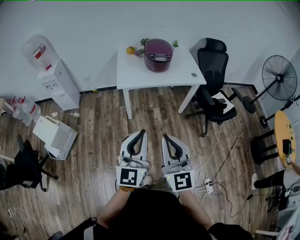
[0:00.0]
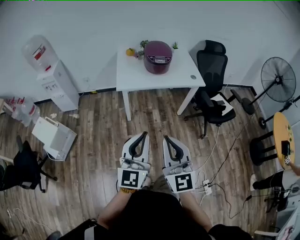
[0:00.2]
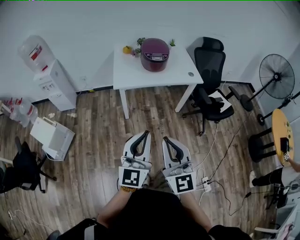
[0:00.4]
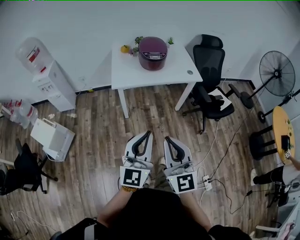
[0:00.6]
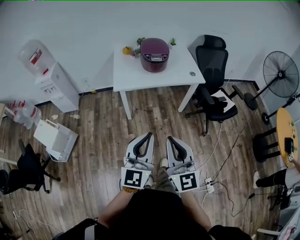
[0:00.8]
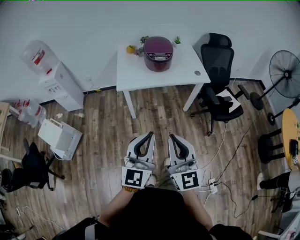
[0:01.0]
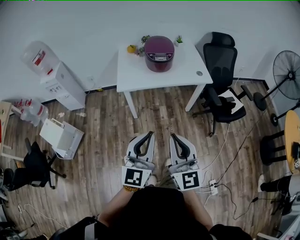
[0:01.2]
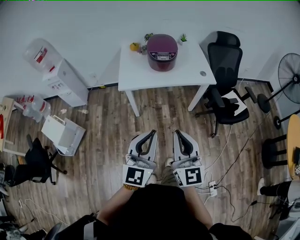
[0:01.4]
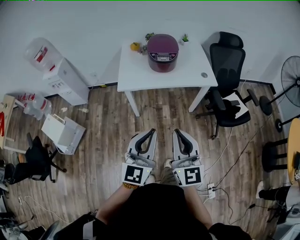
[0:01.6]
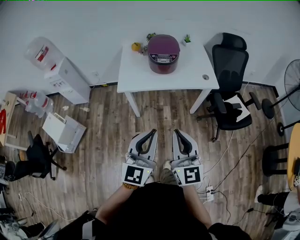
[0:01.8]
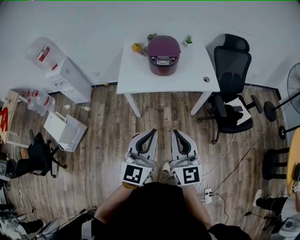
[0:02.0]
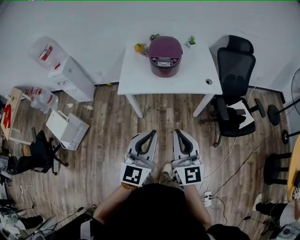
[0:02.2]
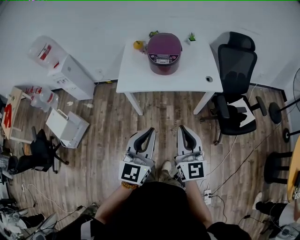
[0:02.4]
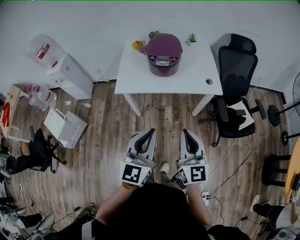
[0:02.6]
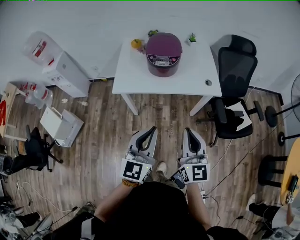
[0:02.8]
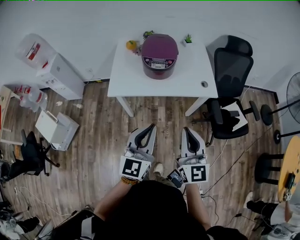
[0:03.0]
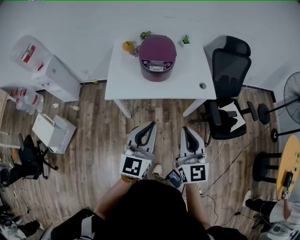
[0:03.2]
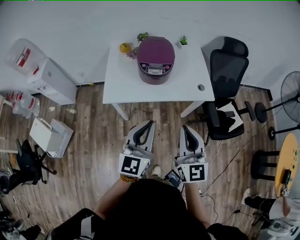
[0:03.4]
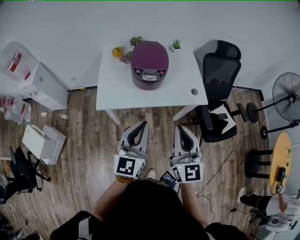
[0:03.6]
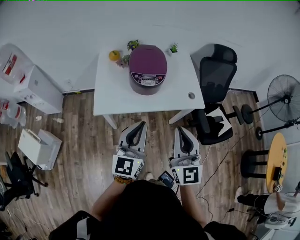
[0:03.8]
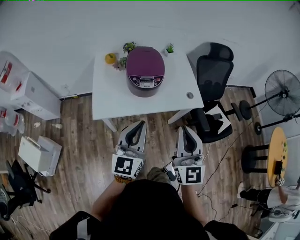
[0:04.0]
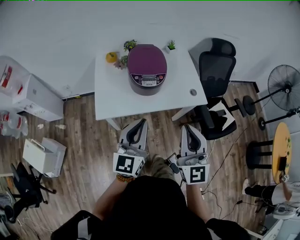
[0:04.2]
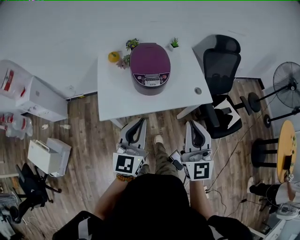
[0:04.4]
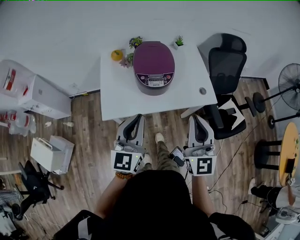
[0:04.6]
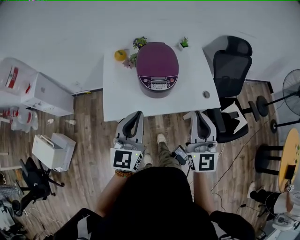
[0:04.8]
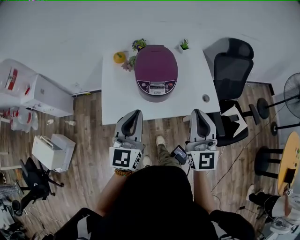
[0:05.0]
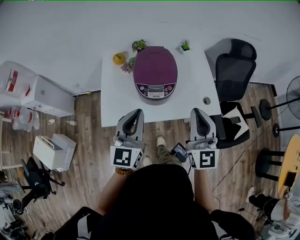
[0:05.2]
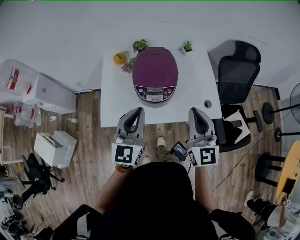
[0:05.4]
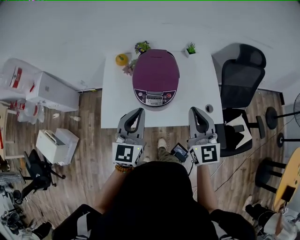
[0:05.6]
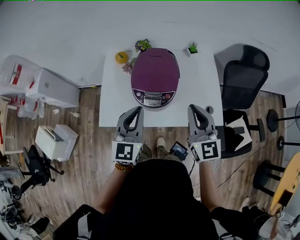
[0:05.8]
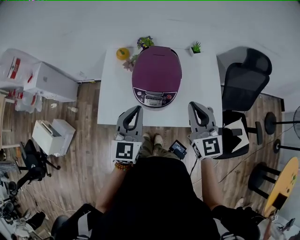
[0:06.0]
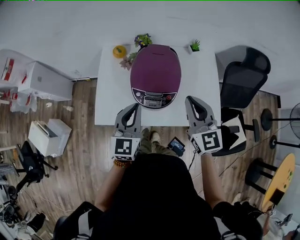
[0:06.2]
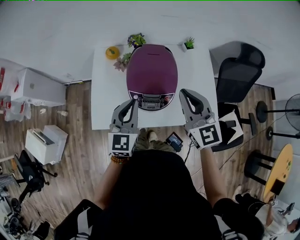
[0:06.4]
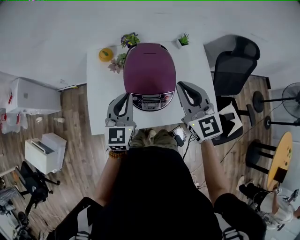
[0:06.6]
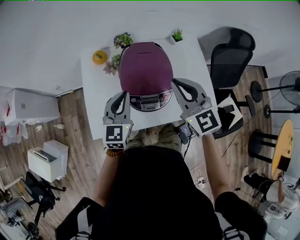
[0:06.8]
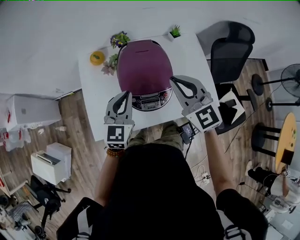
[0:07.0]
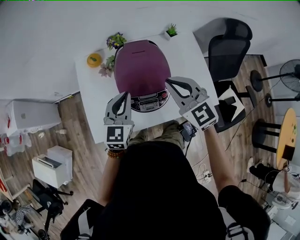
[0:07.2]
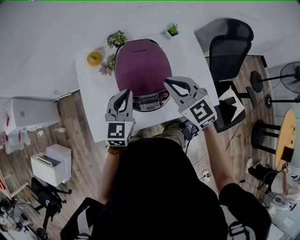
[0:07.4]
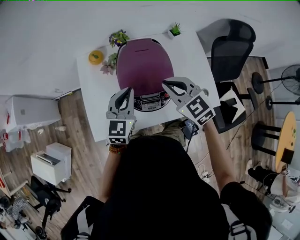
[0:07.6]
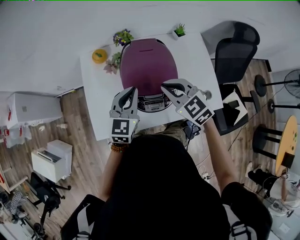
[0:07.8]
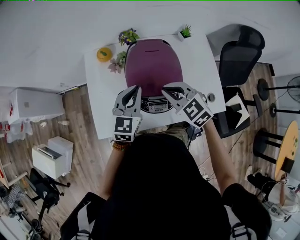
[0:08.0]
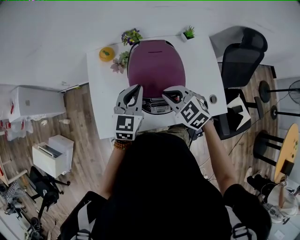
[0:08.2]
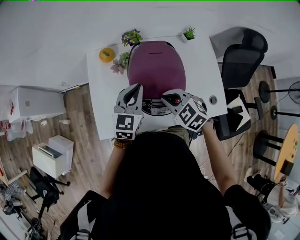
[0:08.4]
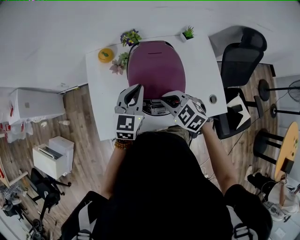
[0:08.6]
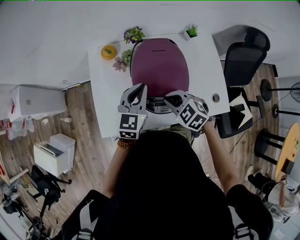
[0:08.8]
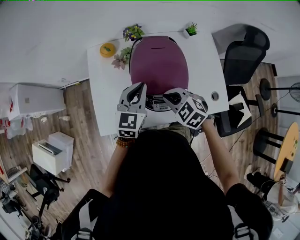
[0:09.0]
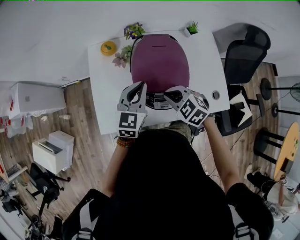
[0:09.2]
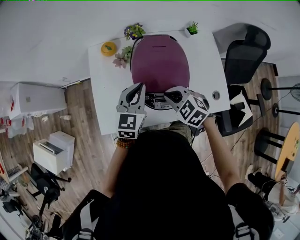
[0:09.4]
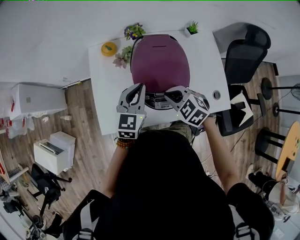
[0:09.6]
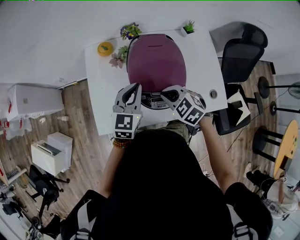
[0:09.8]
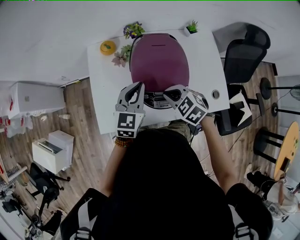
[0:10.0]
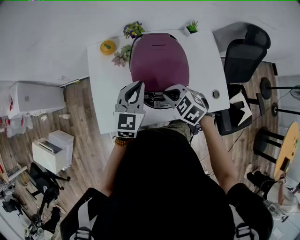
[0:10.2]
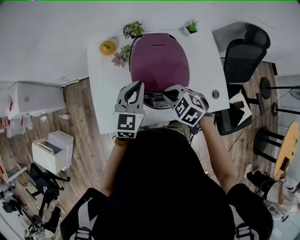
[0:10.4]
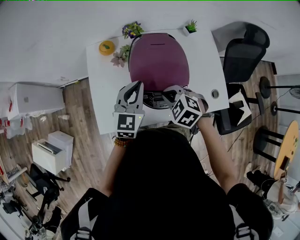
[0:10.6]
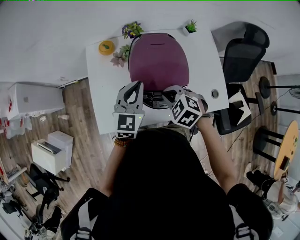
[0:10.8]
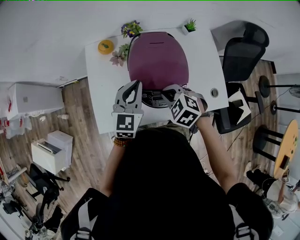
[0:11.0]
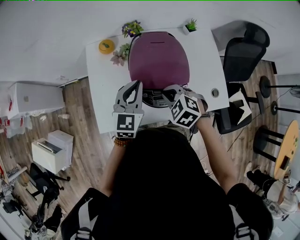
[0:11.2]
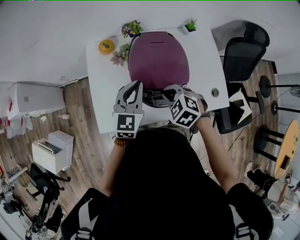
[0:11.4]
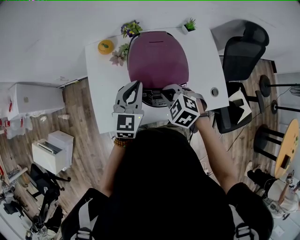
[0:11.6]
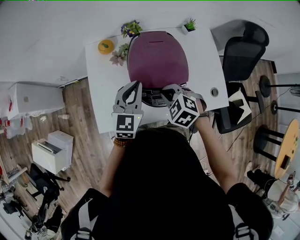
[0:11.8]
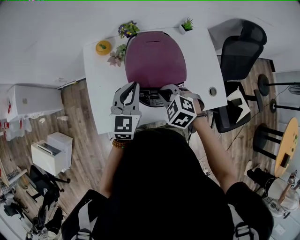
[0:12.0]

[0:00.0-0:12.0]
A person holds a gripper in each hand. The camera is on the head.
0:00.0 to 0:01.6: Both grippers travel together forward and to the right, about 20 cm.
0:01.6 to 0:03.0: The left gripper goes about 15 cm forward. The right gripper is displaced forward and to the right by some 20 cm.
0:03.0 to 0:04.4: The two grippers go roughly 15 cm forward and to the left.
0:04.4 to 0:06.0: Both grippers move forward, approximately 25 cm. The right gripper turns by approximately 30 degrees, while the left gripper rotates roughly 20 degrees.
0:06.0 to 0:07.6: The right gripper heads forward, to the left and downward, covering some 15 cm, and changes its angle by roughly 30 degrees; the left gripper heads forward and downward, covering roughly 15 cm.
0:07.6 to 0:09.0: The right gripper travels downward and to the left by some 10 cm, and changes its angle by roughly 30 degrees.
0:09.0 to 0:12.0: There are only small adjustments of the grippers.

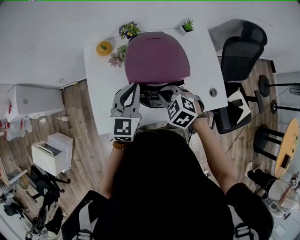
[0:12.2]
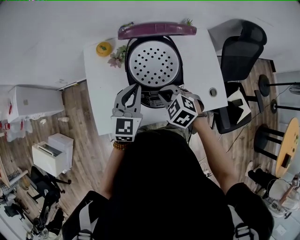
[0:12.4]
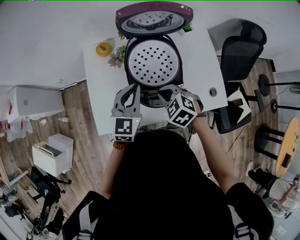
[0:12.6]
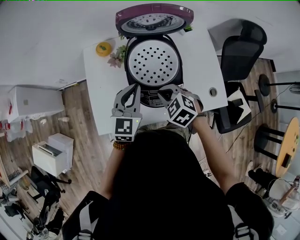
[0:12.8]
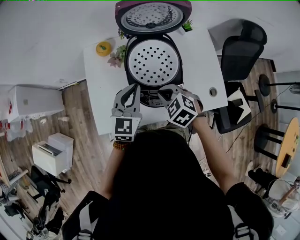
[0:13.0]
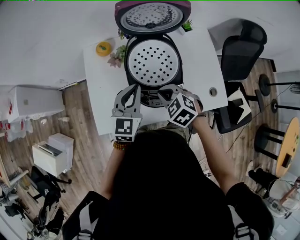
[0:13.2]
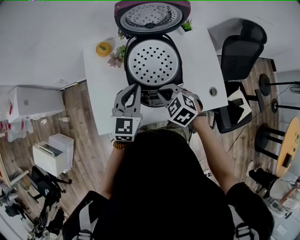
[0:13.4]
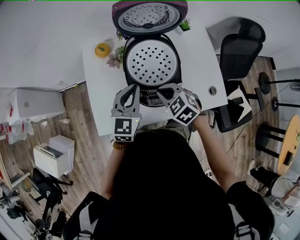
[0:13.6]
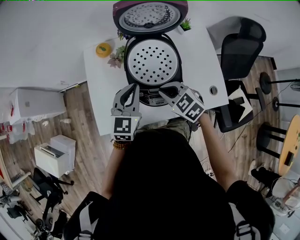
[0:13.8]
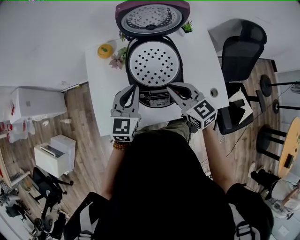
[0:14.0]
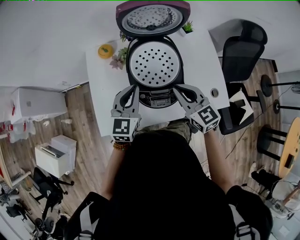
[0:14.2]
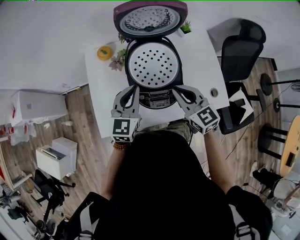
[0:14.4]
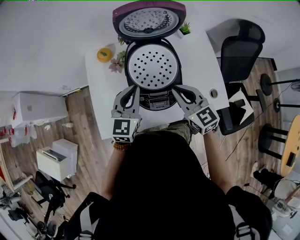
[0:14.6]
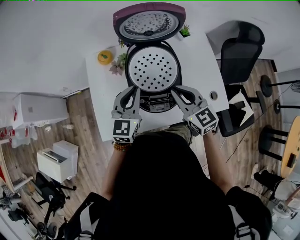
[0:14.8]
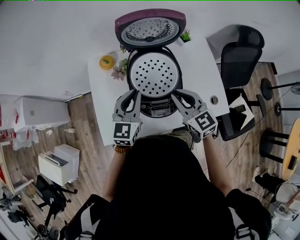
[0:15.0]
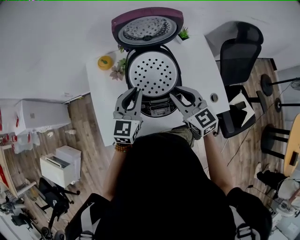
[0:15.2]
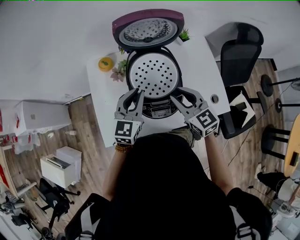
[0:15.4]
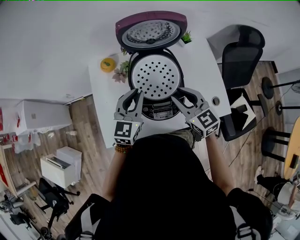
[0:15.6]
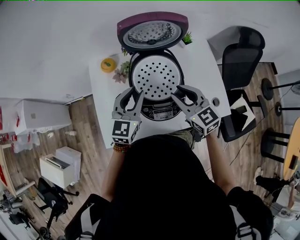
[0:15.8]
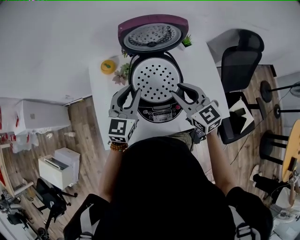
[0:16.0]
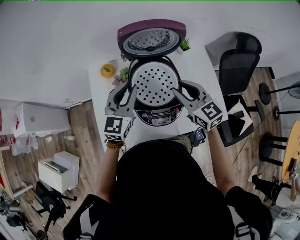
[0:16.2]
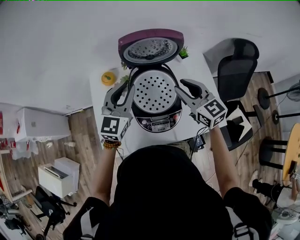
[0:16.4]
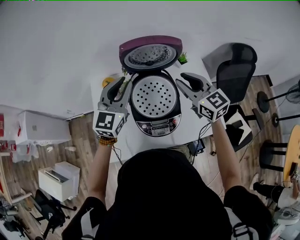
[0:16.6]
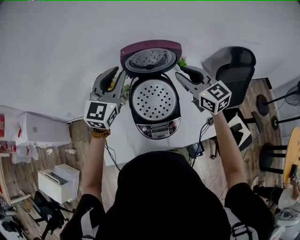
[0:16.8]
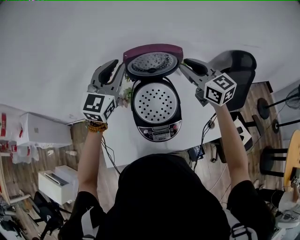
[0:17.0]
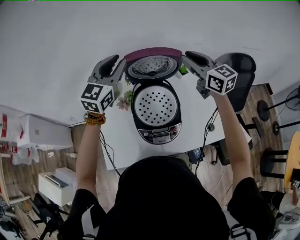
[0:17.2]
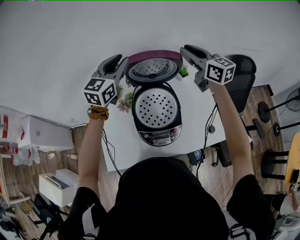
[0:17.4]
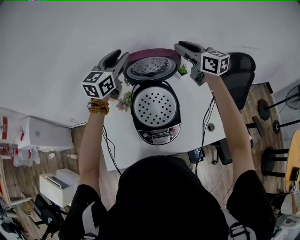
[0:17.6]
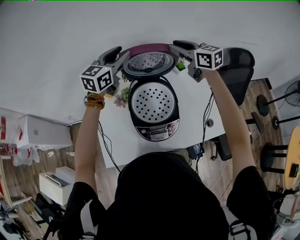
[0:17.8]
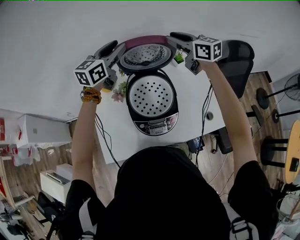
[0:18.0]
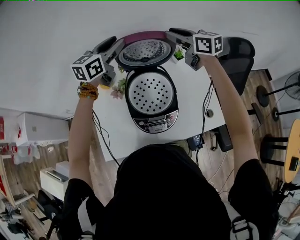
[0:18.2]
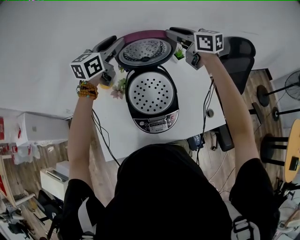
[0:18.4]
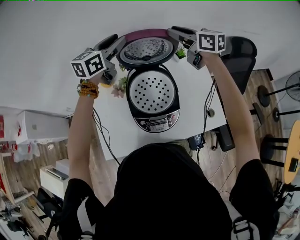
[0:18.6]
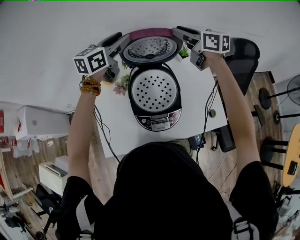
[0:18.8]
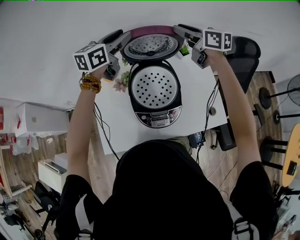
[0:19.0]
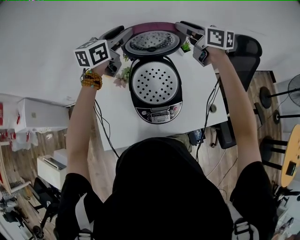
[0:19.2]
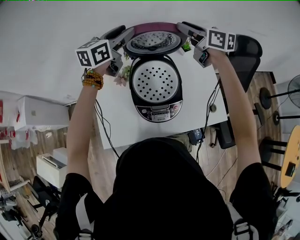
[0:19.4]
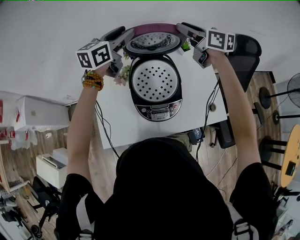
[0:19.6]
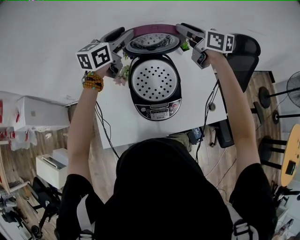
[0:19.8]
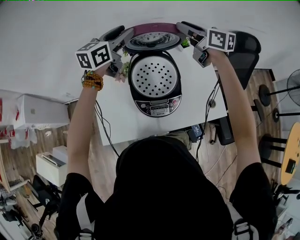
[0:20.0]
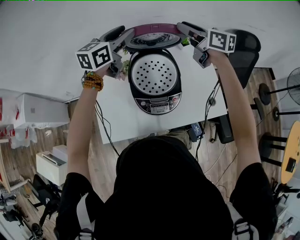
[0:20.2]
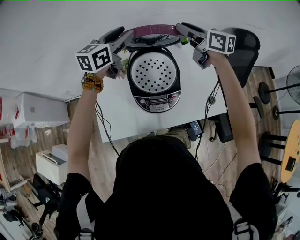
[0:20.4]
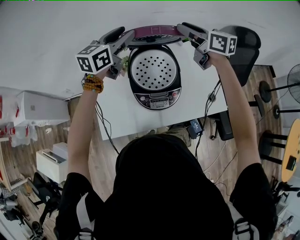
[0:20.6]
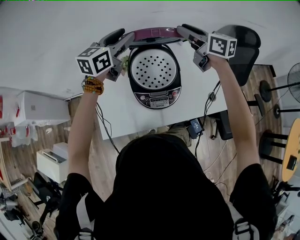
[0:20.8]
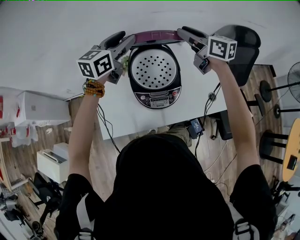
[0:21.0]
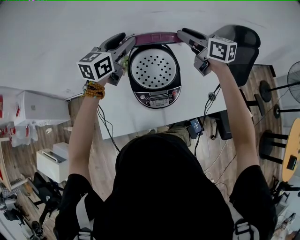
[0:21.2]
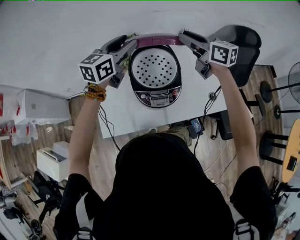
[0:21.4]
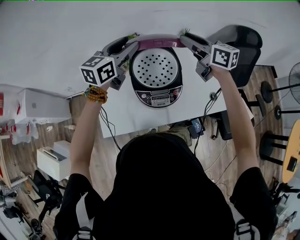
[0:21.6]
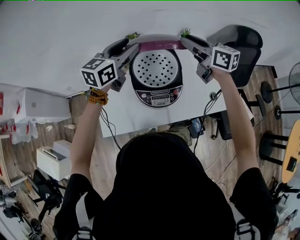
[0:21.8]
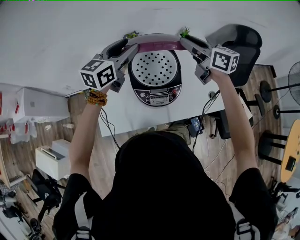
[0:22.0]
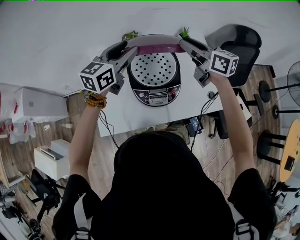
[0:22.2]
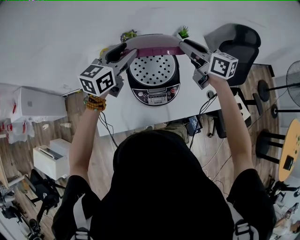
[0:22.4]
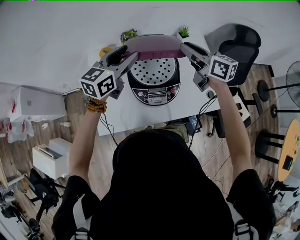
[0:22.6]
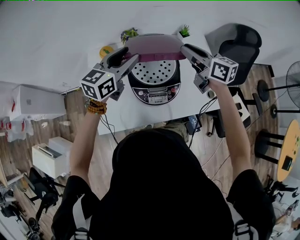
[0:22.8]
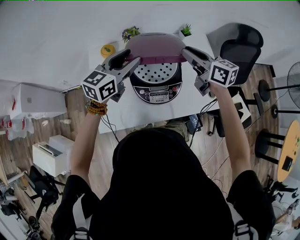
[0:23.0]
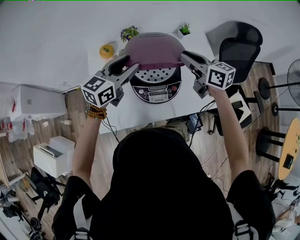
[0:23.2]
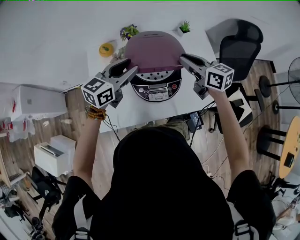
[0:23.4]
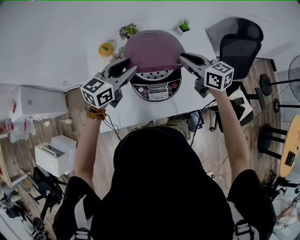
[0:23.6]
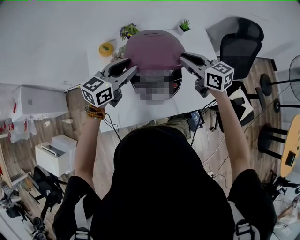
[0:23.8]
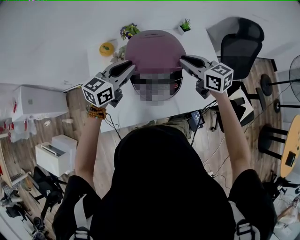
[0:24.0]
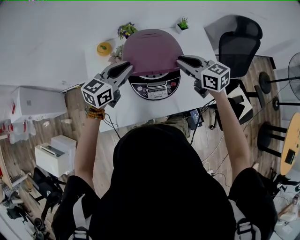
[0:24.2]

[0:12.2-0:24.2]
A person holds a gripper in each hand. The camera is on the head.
0:12.2 to 0:13.8: There are only small adjustments of the grippers.
0:13.8 to 0:15.2: The right gripper goes some 10 cm upward and to the right, and swivels about 30 degrees.
0:15.2 to 0:16.6: The left gripper shifts roughly 15 cm upward and forward. Meanwhile the right gripper heads forward and upward, covering some 15 cm.
0:16.6 to 0:18.2: The grippers both shift forward by roughly 15 cm. The left gripper rotates roughly 20 degrees.
0:18.2 to 0:19.8: There are only small adjustments of the grippers.
0:19.8 to 0:21.2: The two grippers go some 10 cm backward.
0:21.2 to 0:22.6: The two grippers go approximately 5 cm backward.
0:22.6 to 0:24.2: The right gripper heads downward and backward, covering approximately 10 cm. Meanwhile the left gripper moves downward, roughly 10 cm, and closes up.
